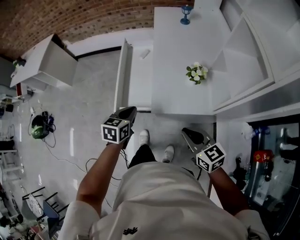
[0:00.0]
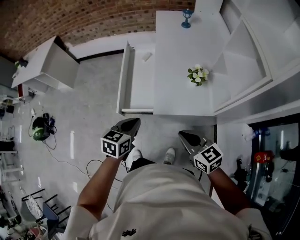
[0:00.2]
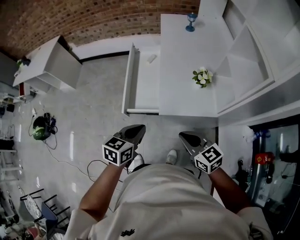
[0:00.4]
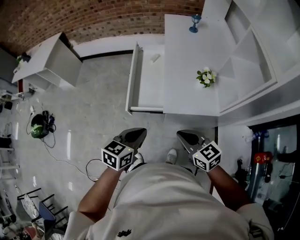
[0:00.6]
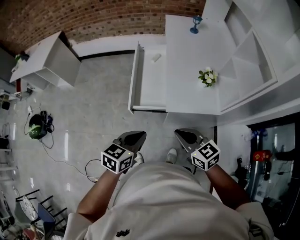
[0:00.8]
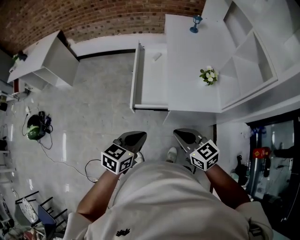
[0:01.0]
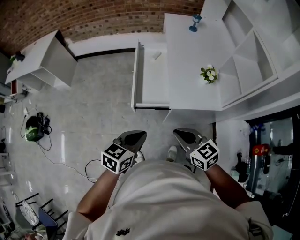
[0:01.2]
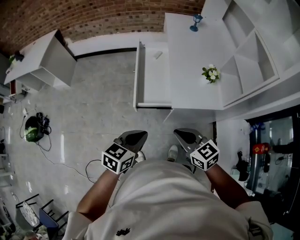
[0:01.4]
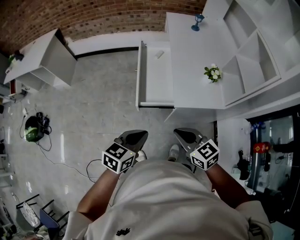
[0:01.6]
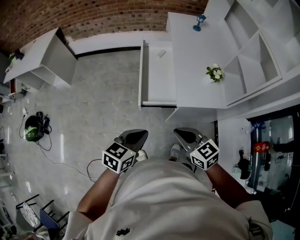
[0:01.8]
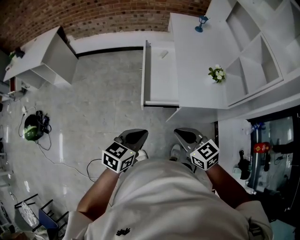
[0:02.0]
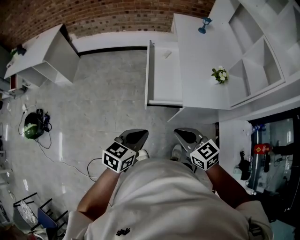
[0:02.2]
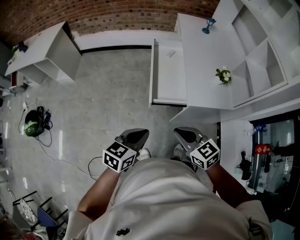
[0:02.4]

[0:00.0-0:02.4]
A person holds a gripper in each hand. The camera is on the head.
0:00.0 to 0:01.2: The left gripper travels backward, to the left and upward by about 20 cm; the right gripper moves to the left, some 20 cm.
0:01.2 to 0:02.4: Both grippers travel together to the left, about 10 cm.

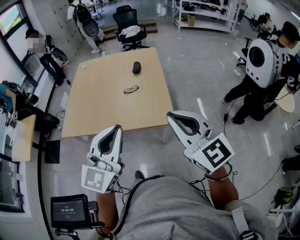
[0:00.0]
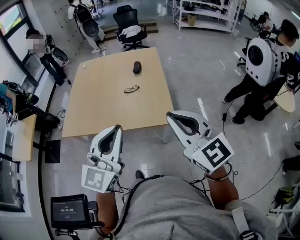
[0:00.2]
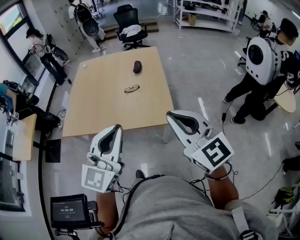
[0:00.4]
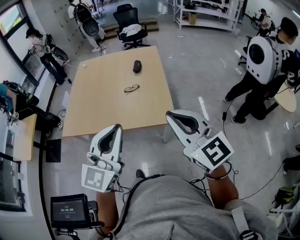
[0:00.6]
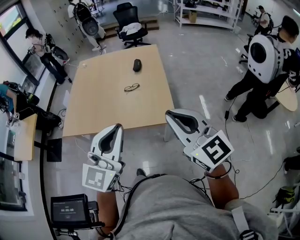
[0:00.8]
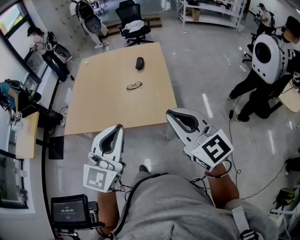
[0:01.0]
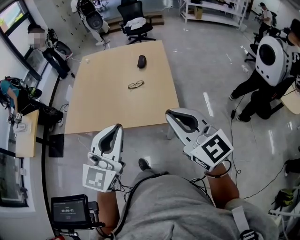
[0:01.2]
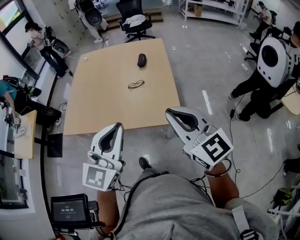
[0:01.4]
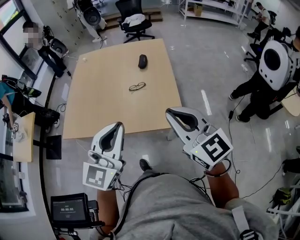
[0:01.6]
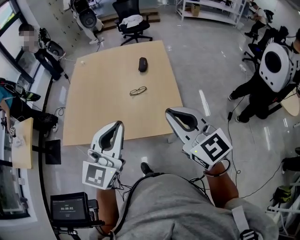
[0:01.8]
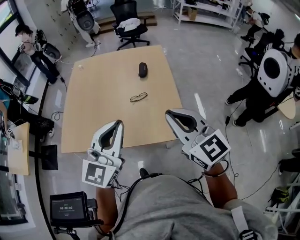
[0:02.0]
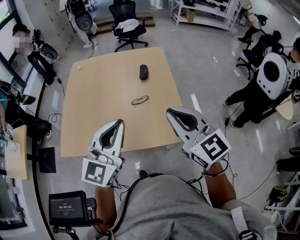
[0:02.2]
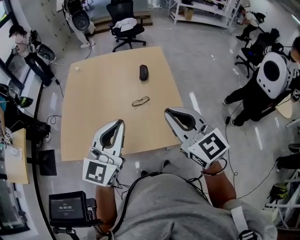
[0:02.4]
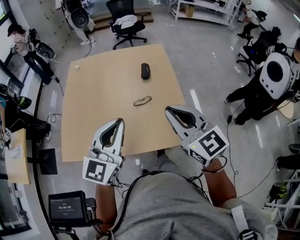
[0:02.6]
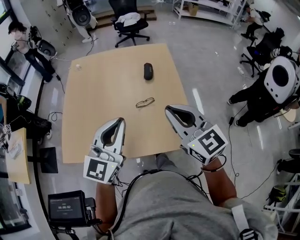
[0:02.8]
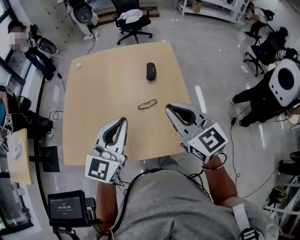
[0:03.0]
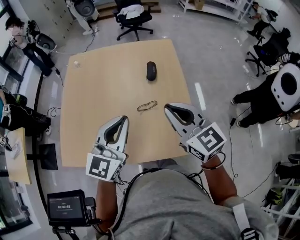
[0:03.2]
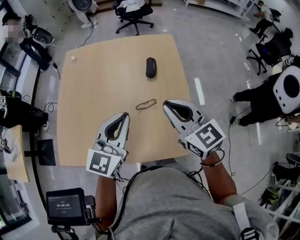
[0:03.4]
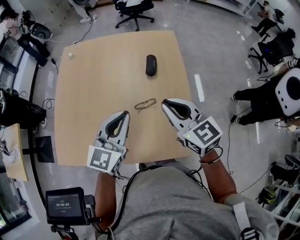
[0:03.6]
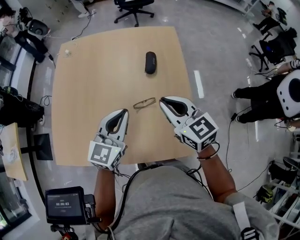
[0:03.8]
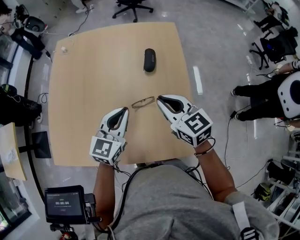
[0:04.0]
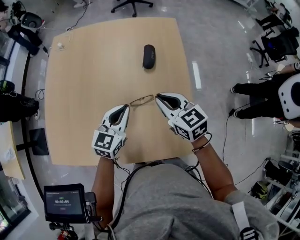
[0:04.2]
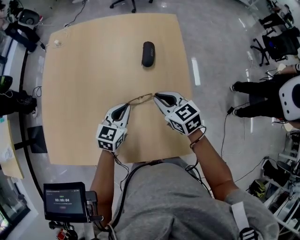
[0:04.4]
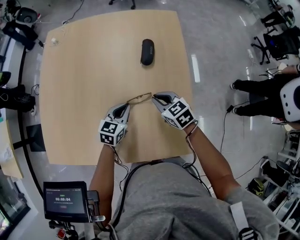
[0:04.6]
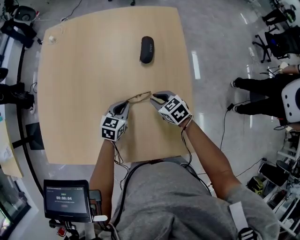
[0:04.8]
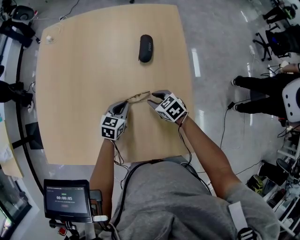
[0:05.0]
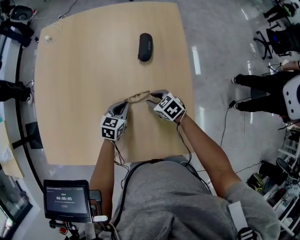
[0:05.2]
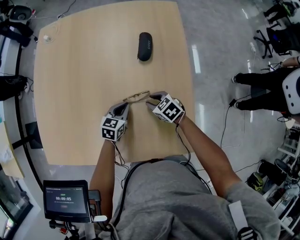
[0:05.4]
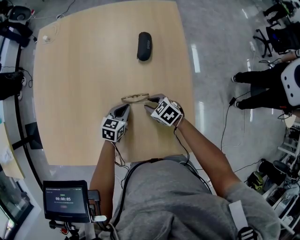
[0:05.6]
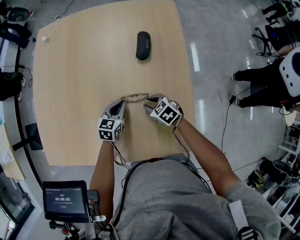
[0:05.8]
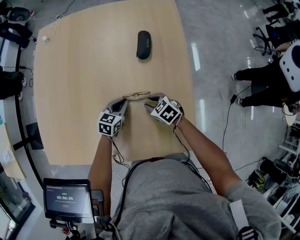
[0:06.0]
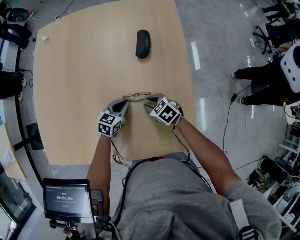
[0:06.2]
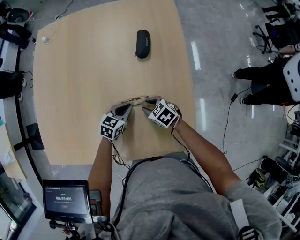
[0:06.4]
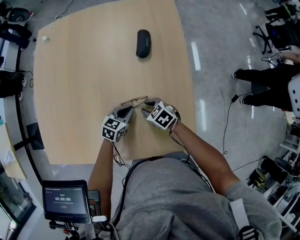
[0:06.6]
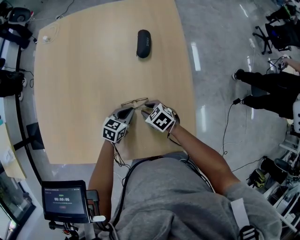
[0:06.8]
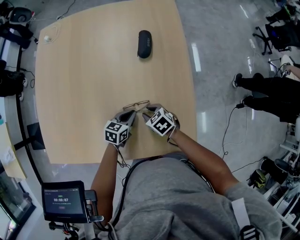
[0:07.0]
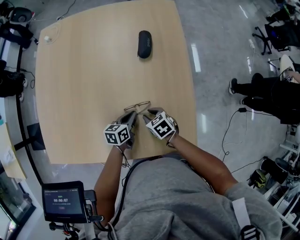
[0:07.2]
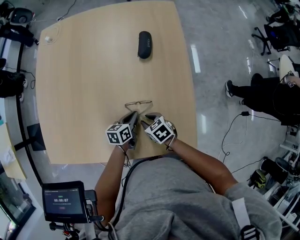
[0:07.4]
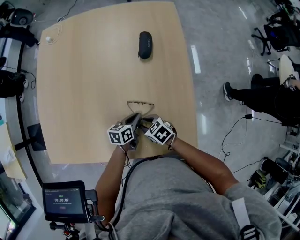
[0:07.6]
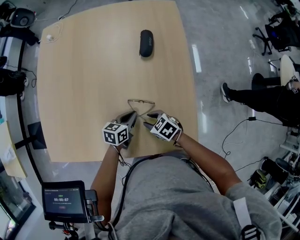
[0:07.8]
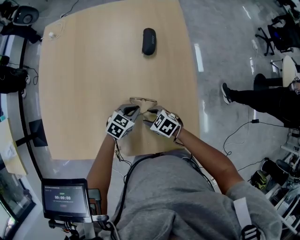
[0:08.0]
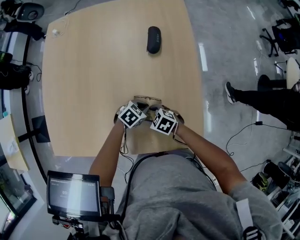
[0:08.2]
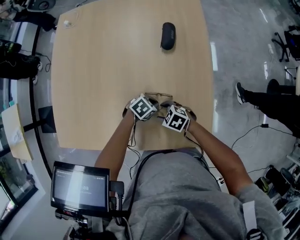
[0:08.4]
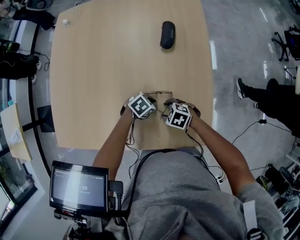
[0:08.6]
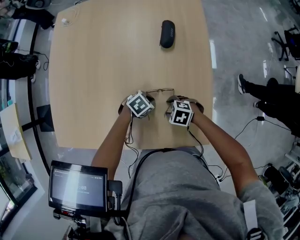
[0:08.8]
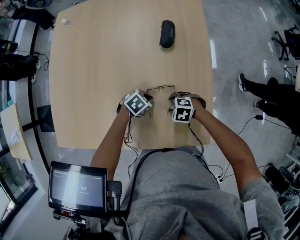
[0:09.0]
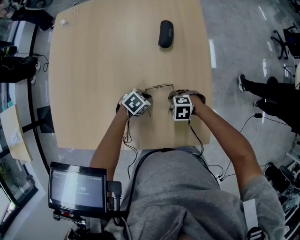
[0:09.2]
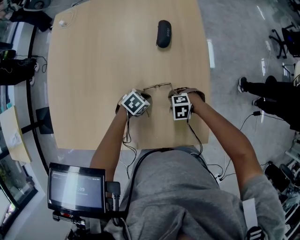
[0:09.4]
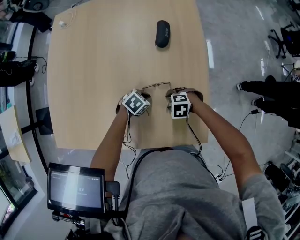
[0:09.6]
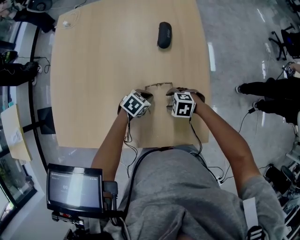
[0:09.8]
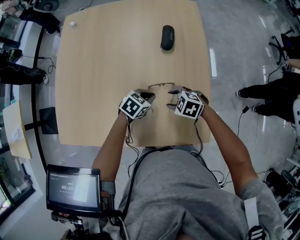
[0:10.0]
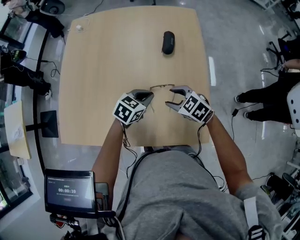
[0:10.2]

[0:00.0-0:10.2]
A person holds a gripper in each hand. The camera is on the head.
0:00.0 to 0:01.4: The two grippers go roughly 10 cm forward.
0:01.4 to 0:03.0: The two grippers go about 30 cm forward.
0:03.0 to 0:04.4: The two grippers go about 30 cm downward and forward. The left gripper rotates some 30 degrees; the right gripper changes its angle by roughly 30 degrees.
0:04.4 to 0:05.8: Both grippers move downward, some 20 cm. The right gripper swivels about 30 degrees, and opens.
0:05.8 to 0:07.2: Both grippers move backward, approximately 10 cm. The left gripper changes its angle by roughly 30 degrees.
0:07.2 to 0:08.8: The left gripper turns by approximately 60 degrees. Meanwhile the right gripper rotates about 50 degrees, and opens up.
0:08.8 to 0:10.2: The grippers both shift upward by approximately 10 cm. The left gripper changes its angle by approximately 30 degrees. Meanwhile the right gripper rotates roughly 30 degrees.

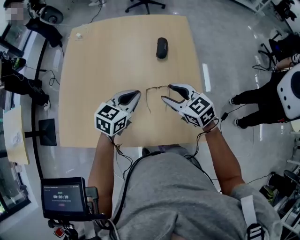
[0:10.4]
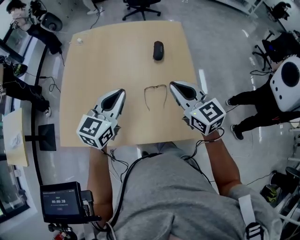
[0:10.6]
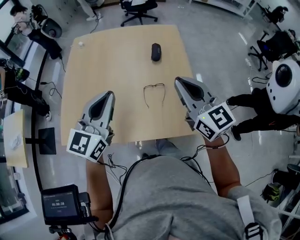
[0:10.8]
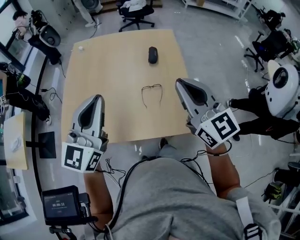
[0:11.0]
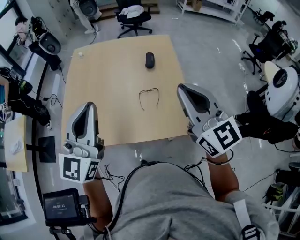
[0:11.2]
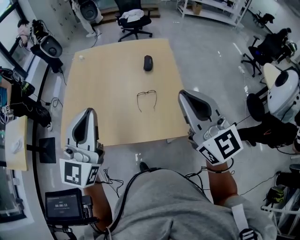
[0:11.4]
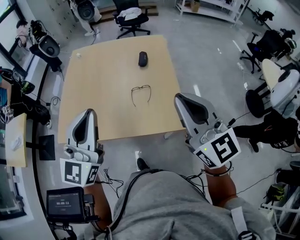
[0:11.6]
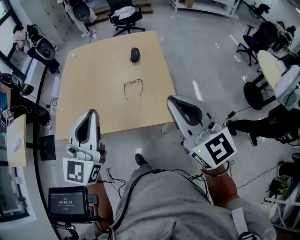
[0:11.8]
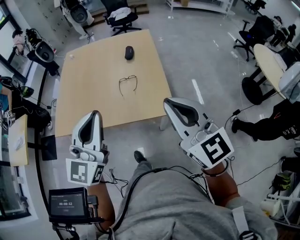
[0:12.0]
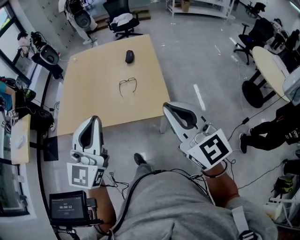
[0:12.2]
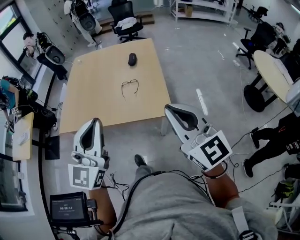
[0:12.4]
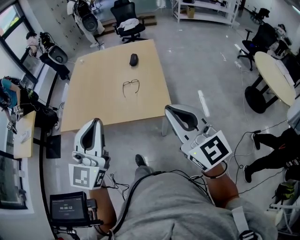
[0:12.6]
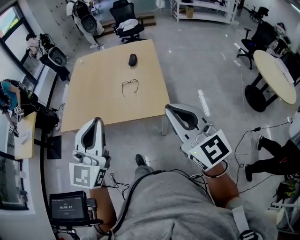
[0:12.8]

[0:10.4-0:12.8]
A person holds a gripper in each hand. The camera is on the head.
0:10.4 to 0:11.6: The grippers both shift backward and upward by approximately 40 cm. The left gripper angles its fingers upward, by some 40 degrees. The right gripper tips its fingers upward by approximately 40 degrees, and closes.
0:11.6 to 0:12.8: The left gripper moves backward and to the right, roughly 25 cm; the right gripper travels backward by some 25 cm.

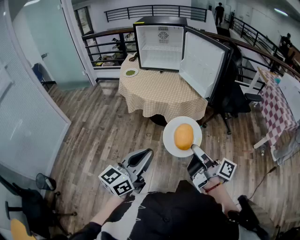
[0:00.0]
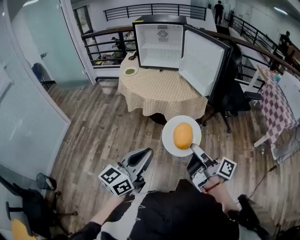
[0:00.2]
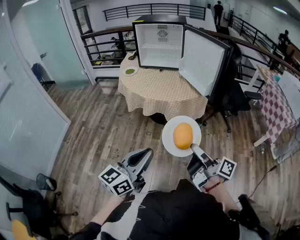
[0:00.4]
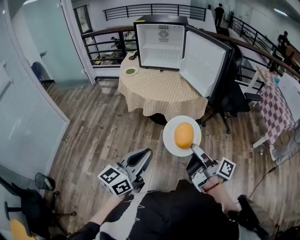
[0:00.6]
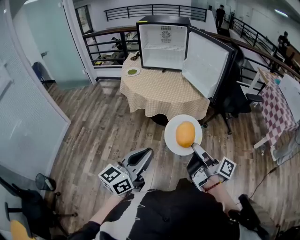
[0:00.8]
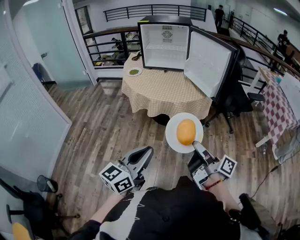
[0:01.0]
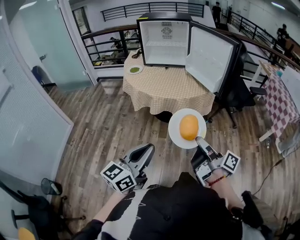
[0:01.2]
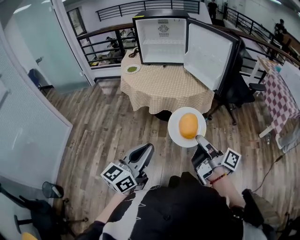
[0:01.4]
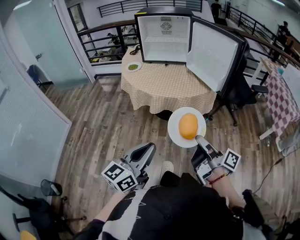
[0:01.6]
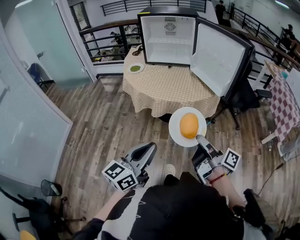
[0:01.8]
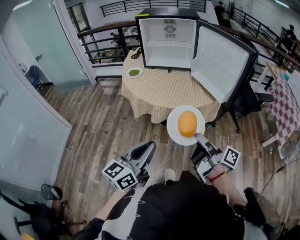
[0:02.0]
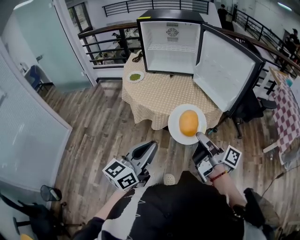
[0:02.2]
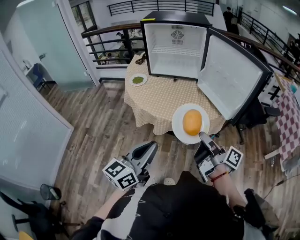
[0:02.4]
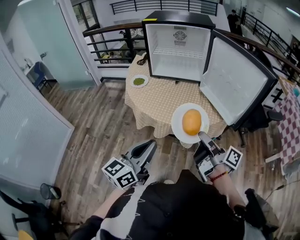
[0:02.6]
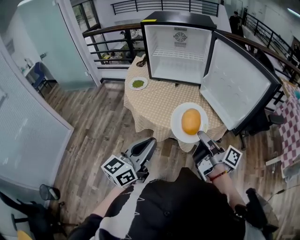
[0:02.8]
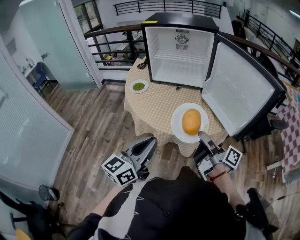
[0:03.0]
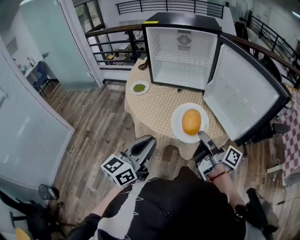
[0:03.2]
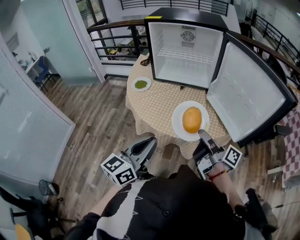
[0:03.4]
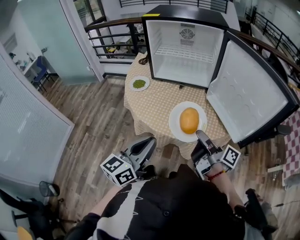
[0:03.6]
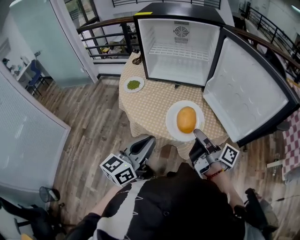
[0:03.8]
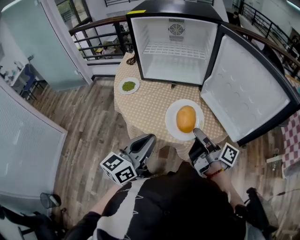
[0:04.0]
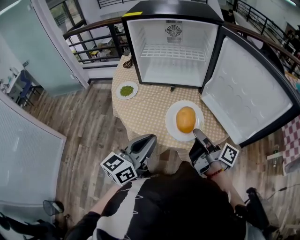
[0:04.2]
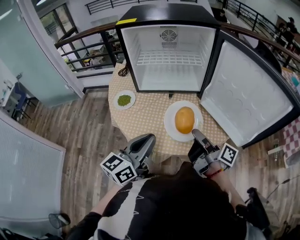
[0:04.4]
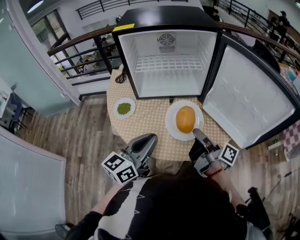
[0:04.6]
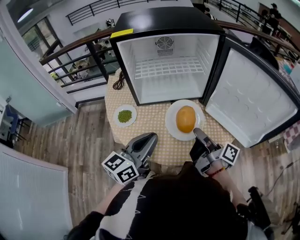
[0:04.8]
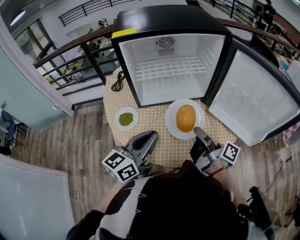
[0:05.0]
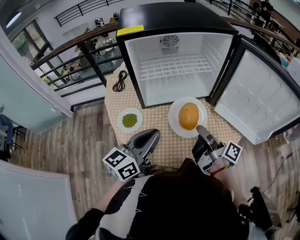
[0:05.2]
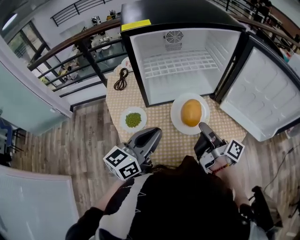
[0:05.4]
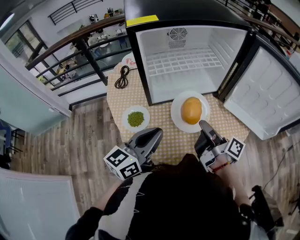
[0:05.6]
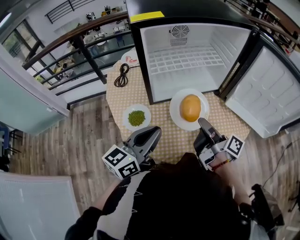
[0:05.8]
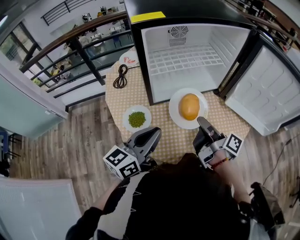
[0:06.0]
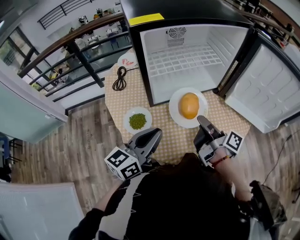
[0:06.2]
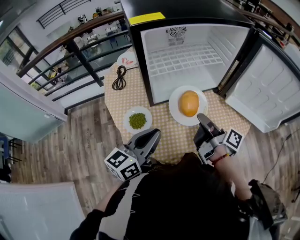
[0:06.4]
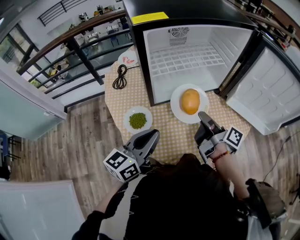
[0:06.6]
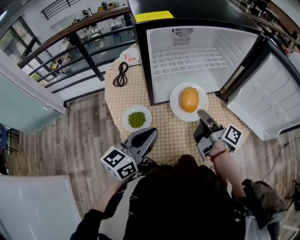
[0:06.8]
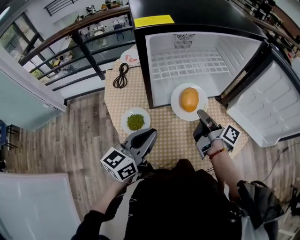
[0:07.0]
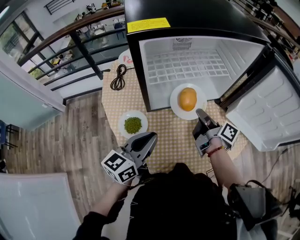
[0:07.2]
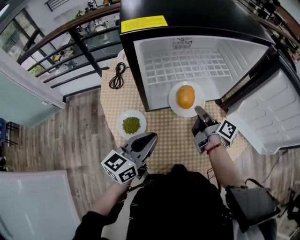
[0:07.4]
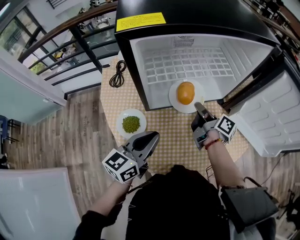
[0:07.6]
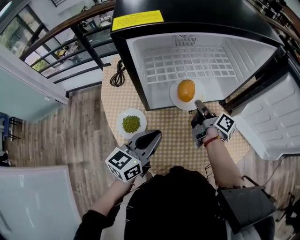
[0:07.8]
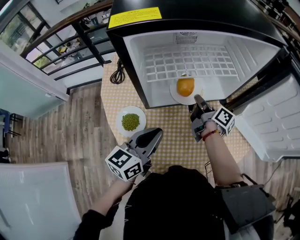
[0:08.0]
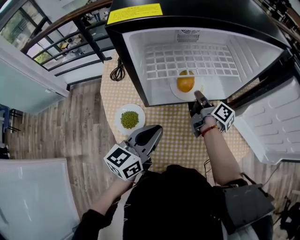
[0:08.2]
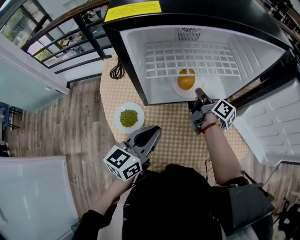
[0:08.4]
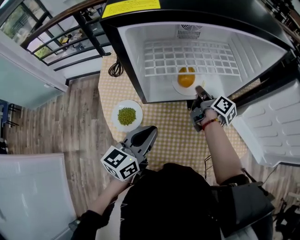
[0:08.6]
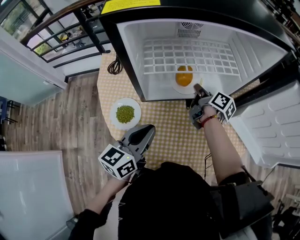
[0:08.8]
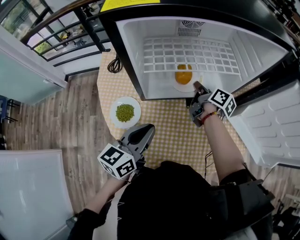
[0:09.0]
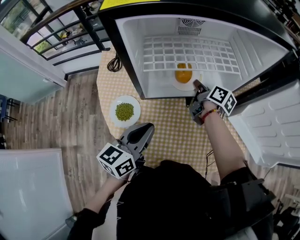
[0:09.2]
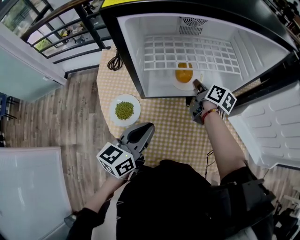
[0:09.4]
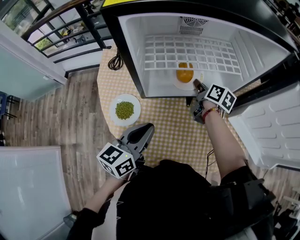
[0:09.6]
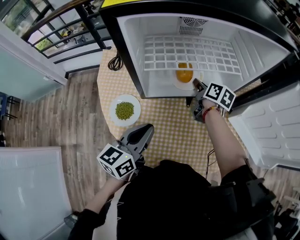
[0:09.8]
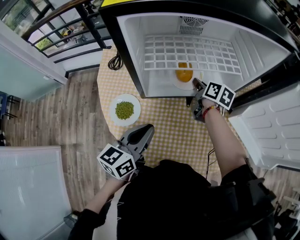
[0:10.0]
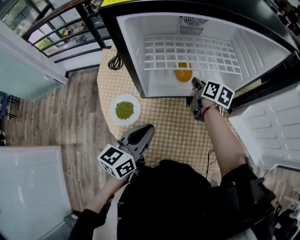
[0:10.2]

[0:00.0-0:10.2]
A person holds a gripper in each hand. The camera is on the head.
0:00.0 to 0:01.4: The grippers both shift to the left by some 5 cm.
0:01.4 to 0:03.0: The two grippers go about 35 cm forward.
0:03.0 to 0:04.4: Both grippers travel together forward, about 15 cm.
0:04.4 to 0:05.8: Both grippers move to the left and forward, about 20 cm.
0:05.8 to 0:07.2: The right gripper is displaced forward by about 10 cm; the left gripper changes place by approximately 5 cm.
0:07.2 to 0:08.8: The left gripper changes place by approximately 5 cm. The right gripper travels forward and downward by about 15 cm.
0:08.8 to 0:10.2: The right gripper rotates roughly 30 degrees.
